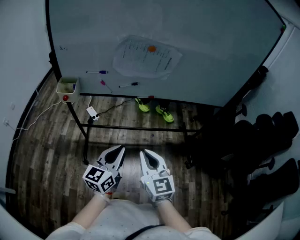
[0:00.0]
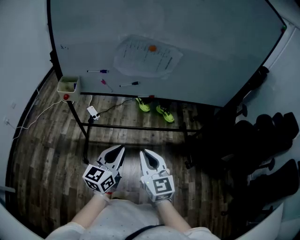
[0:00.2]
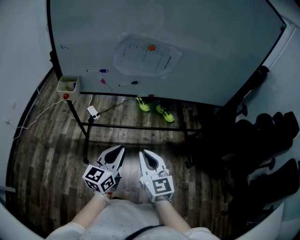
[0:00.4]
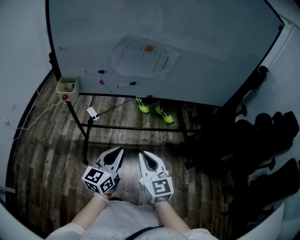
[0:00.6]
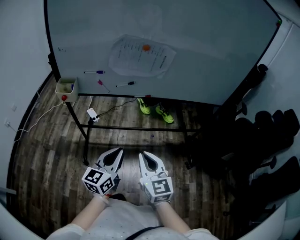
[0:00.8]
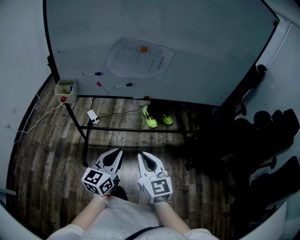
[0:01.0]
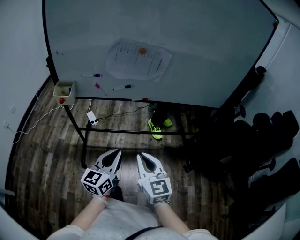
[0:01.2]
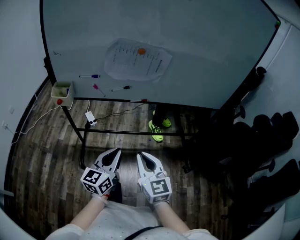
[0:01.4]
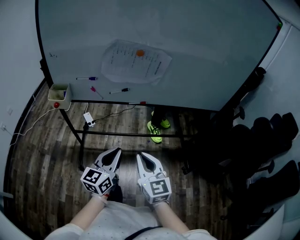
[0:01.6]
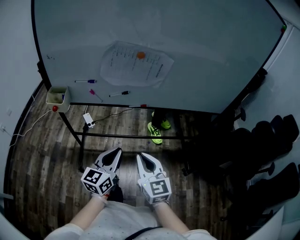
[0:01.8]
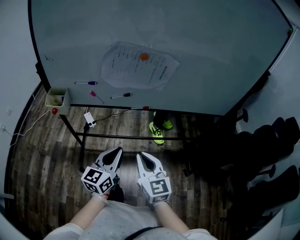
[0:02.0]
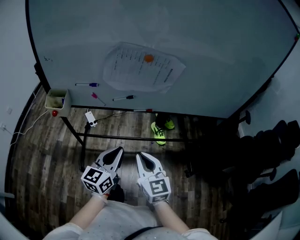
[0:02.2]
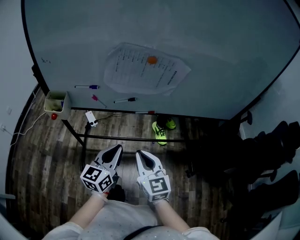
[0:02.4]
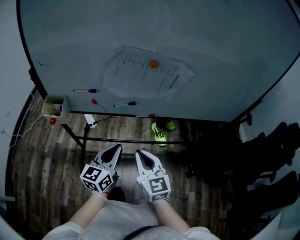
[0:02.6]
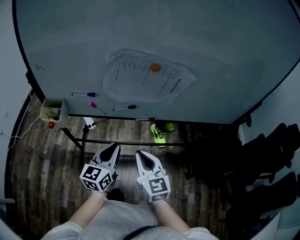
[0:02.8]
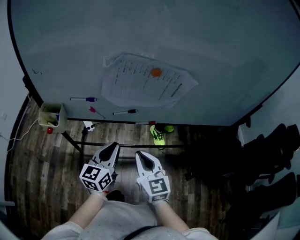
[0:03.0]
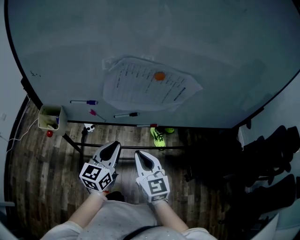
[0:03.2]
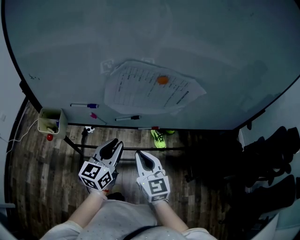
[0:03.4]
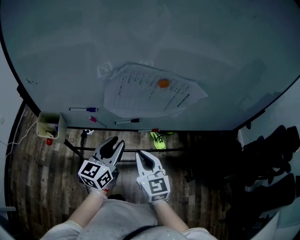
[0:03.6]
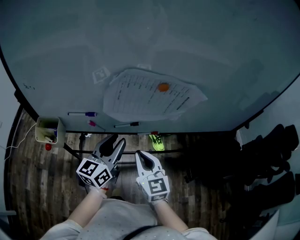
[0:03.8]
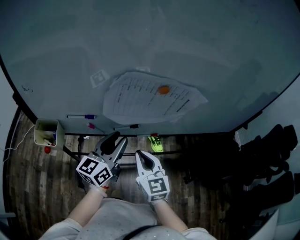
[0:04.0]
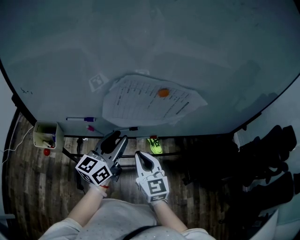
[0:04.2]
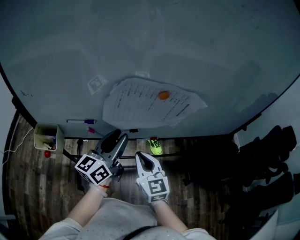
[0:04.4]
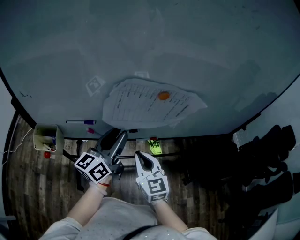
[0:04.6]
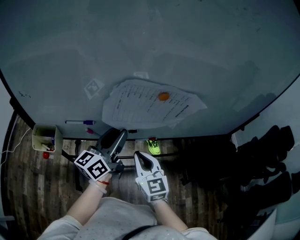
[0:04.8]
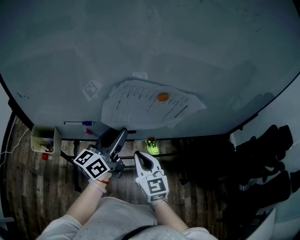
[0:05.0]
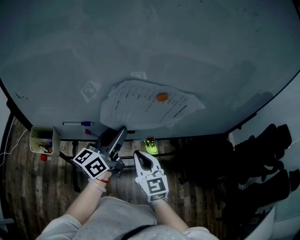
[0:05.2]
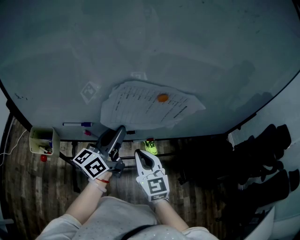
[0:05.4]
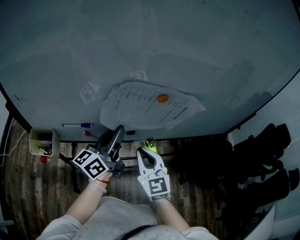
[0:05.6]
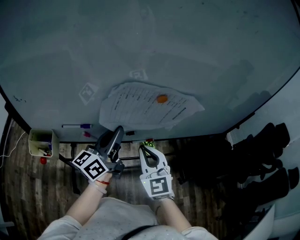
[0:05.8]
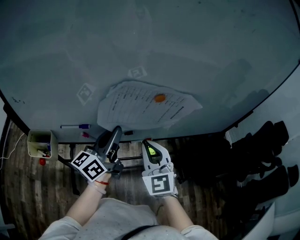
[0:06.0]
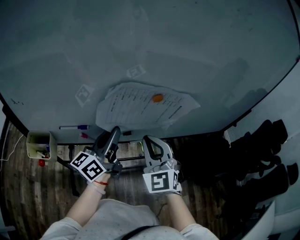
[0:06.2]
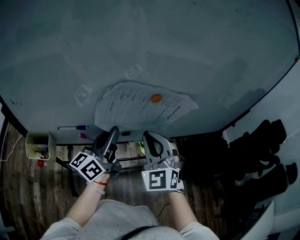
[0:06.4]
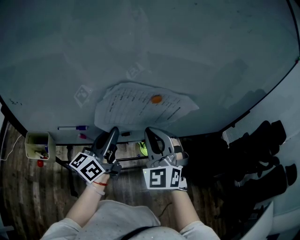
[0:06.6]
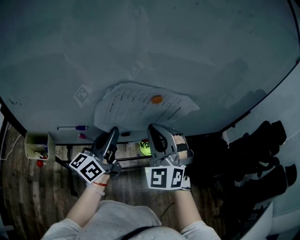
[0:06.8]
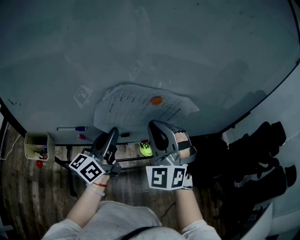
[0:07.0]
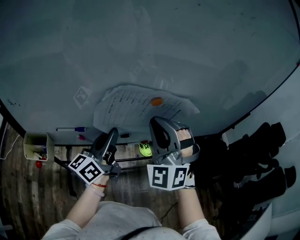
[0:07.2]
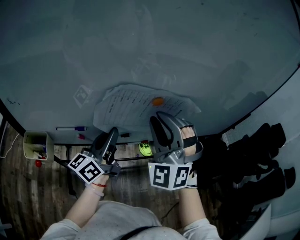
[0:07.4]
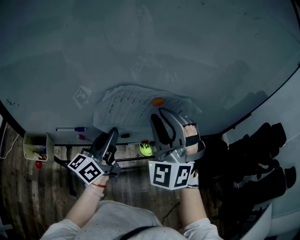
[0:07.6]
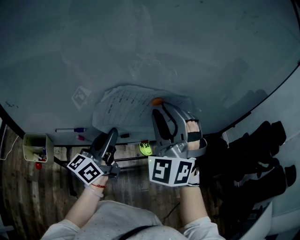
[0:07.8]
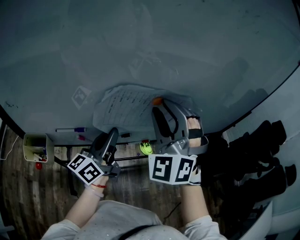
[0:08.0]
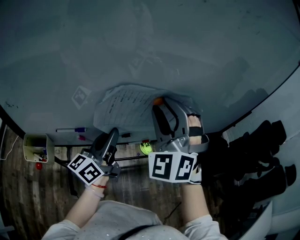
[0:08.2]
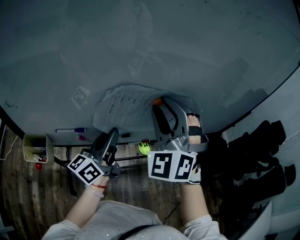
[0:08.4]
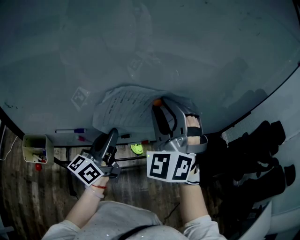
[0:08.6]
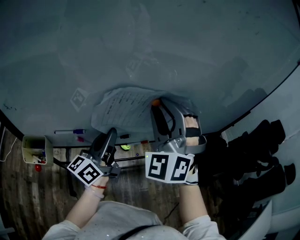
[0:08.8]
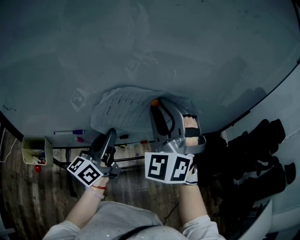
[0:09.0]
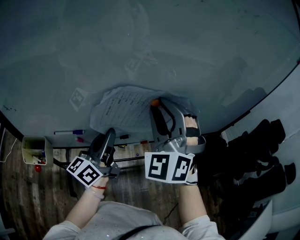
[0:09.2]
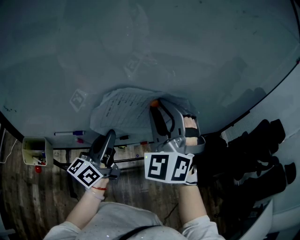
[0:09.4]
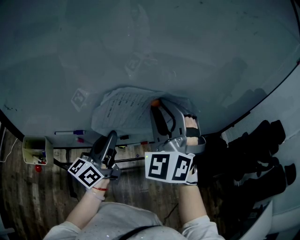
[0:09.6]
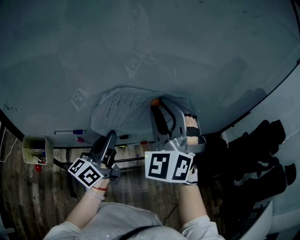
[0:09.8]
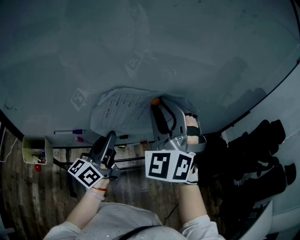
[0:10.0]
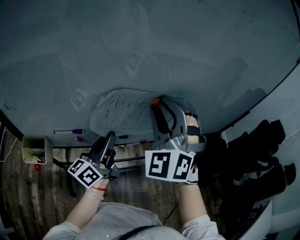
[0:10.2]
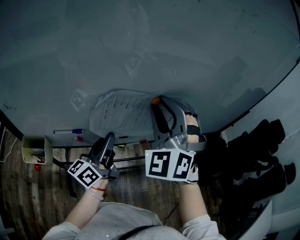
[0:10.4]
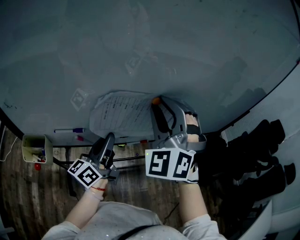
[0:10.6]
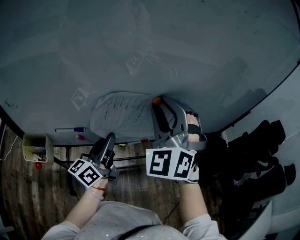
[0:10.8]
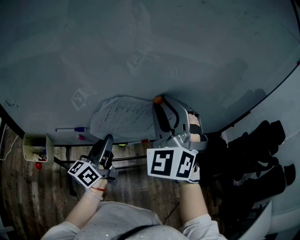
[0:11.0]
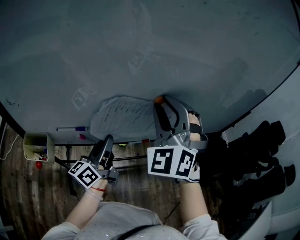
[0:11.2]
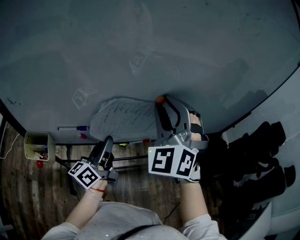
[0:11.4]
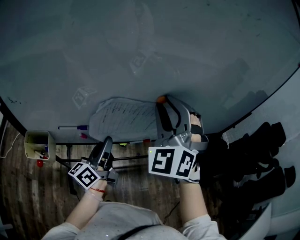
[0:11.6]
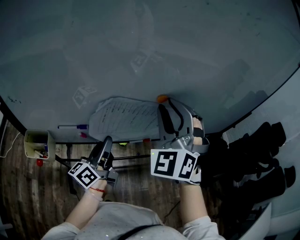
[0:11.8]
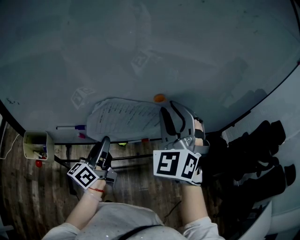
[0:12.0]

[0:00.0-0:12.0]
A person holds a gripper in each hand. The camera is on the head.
0:00.0 to 0:01.6: There are only small adjustments of the grippers.
0:01.6 to 0:03.0: The two grippers go about 20 cm forward.
0:03.0 to 0:04.4: The left gripper shifts some 15 cm forward and upward, swivels approximately 20 degrees, and opens its fingers. Meanwhile the right gripper goes approximately 10 cm forward.
0:04.4 to 0:06.0: The right gripper is displaced upward by some 10 cm, and swivels about 30 degrees. The left gripper closes its fingers.
0:06.0 to 0:07.6: The right gripper travels upward by roughly 15 cm, rolls counterclockwise, seen from behind, by about 40 degrees, and opens.
0:07.6 to 0:10.4: The grippers stay close to where they were, moving slightly.
0:10.4 to 0:12.0: The left gripper ends up some 5 cm from where it was.

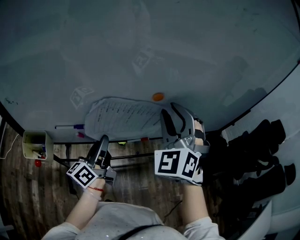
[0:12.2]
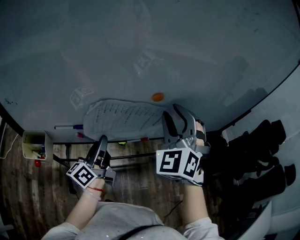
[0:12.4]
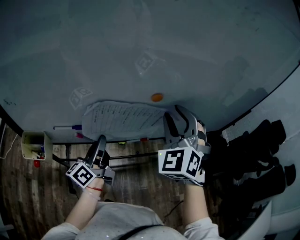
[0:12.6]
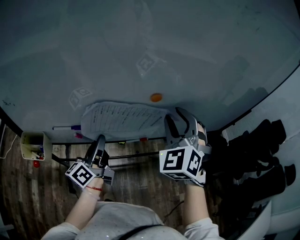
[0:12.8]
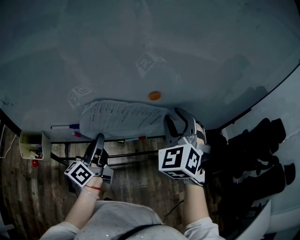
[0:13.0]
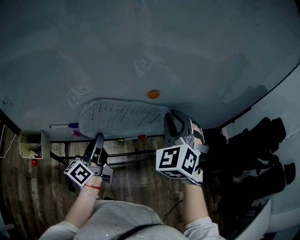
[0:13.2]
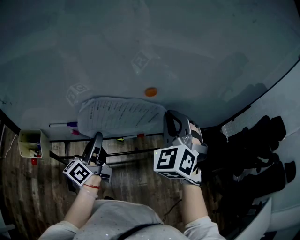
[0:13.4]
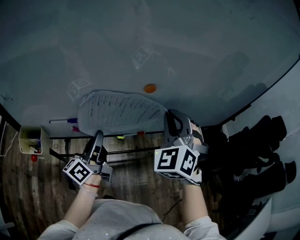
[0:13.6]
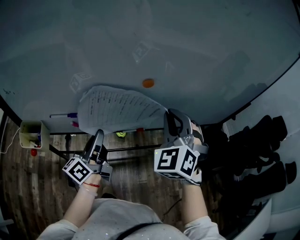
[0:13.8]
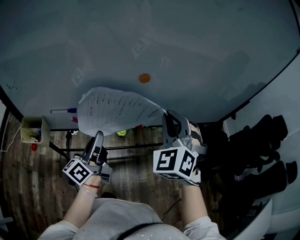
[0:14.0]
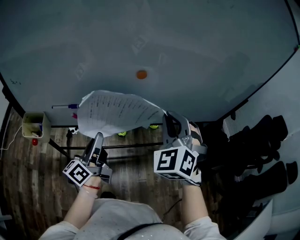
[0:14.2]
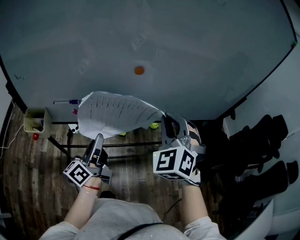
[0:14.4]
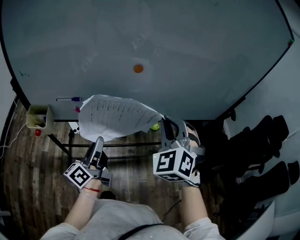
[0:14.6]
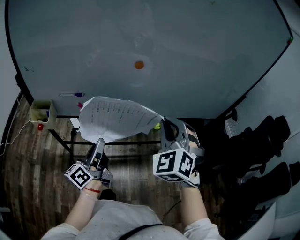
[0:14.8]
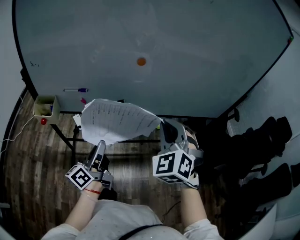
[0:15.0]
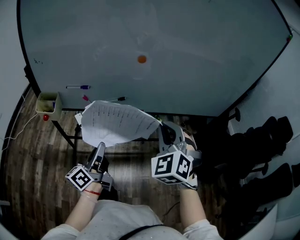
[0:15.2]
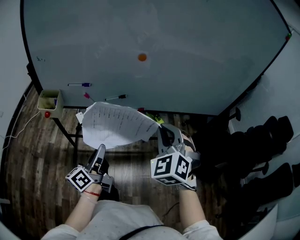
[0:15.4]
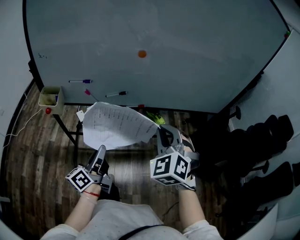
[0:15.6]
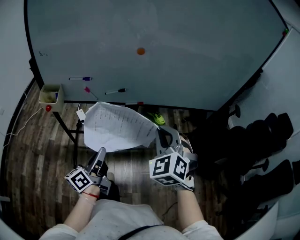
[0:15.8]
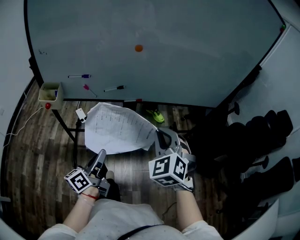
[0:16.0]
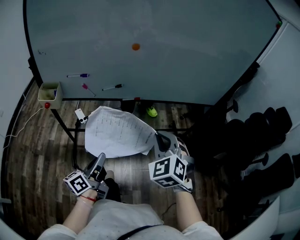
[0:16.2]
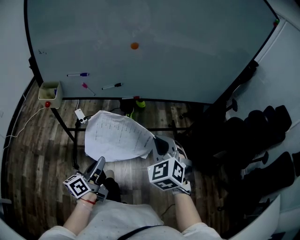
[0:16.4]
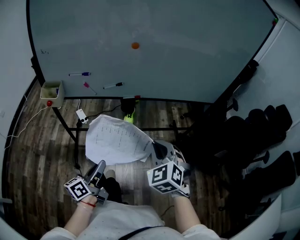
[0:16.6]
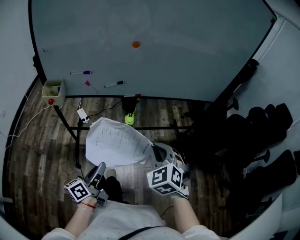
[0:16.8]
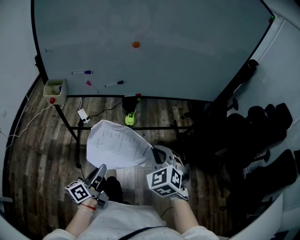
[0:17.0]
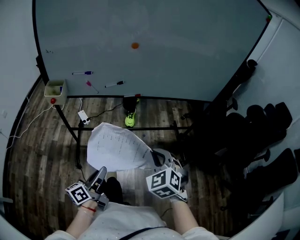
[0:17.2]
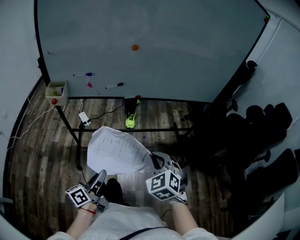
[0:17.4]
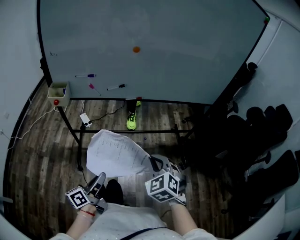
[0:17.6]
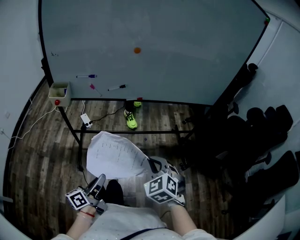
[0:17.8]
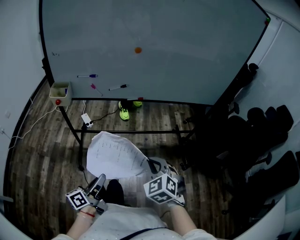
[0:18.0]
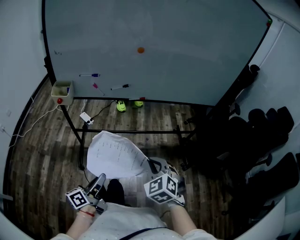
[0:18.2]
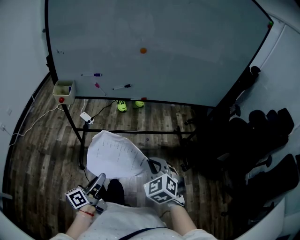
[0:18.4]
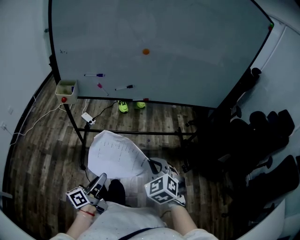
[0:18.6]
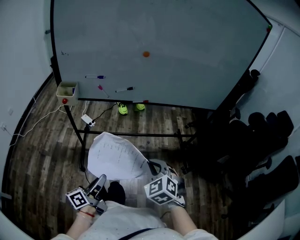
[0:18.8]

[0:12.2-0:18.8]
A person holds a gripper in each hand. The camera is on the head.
0:12.2 to 0:13.8: The right gripper travels to the right by about 5 cm, and closes up.
0:13.8 to 0:15.4: Both grippers move backward, approximately 20 cm.
0:15.4 to 0:17.2: The left gripper heads backward, covering roughly 20 cm. Meanwhile the right gripper travels backward and downward by approximately 20 cm.
0:17.2 to 0:18.8: Both grippers move backward, some 5 cm.

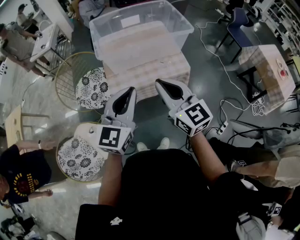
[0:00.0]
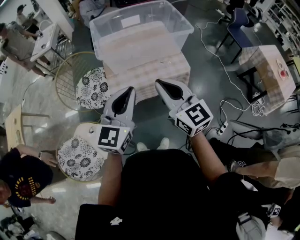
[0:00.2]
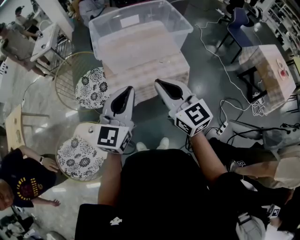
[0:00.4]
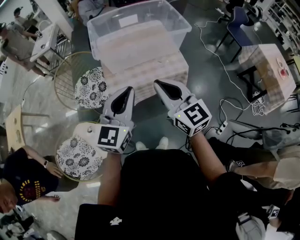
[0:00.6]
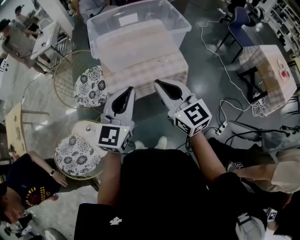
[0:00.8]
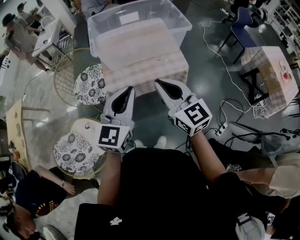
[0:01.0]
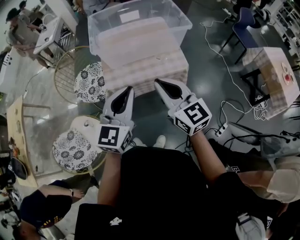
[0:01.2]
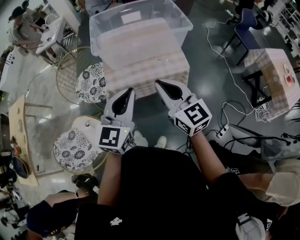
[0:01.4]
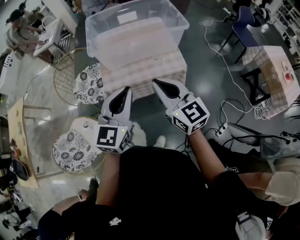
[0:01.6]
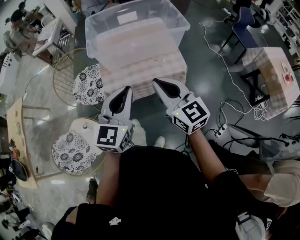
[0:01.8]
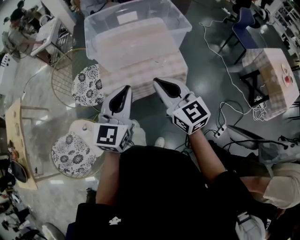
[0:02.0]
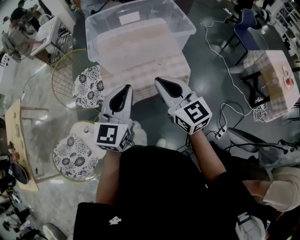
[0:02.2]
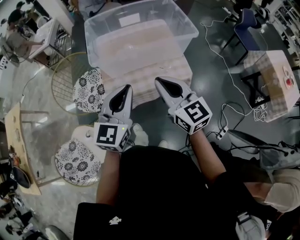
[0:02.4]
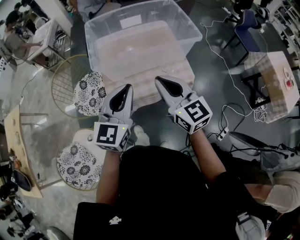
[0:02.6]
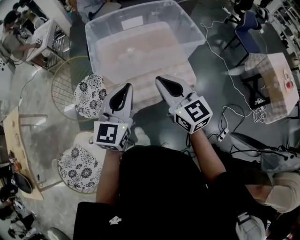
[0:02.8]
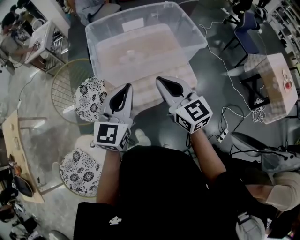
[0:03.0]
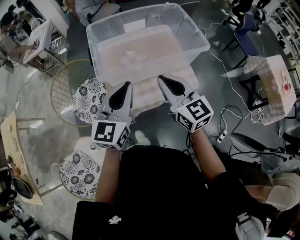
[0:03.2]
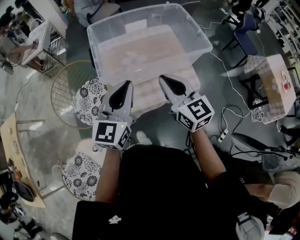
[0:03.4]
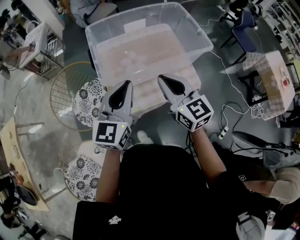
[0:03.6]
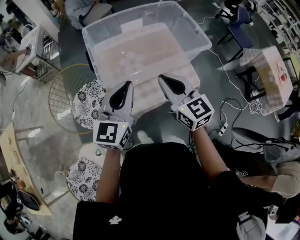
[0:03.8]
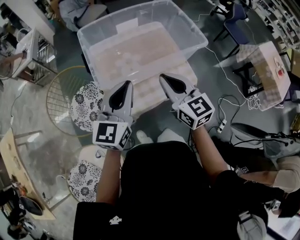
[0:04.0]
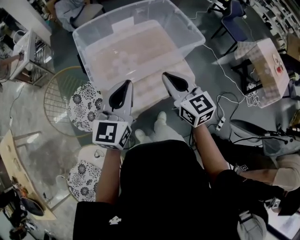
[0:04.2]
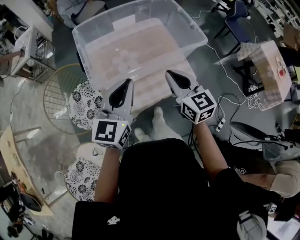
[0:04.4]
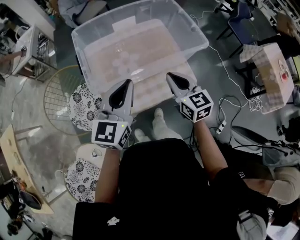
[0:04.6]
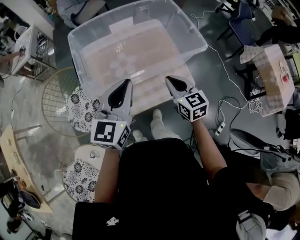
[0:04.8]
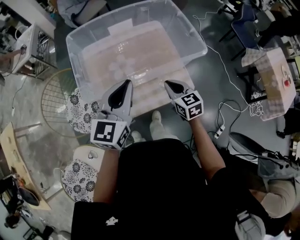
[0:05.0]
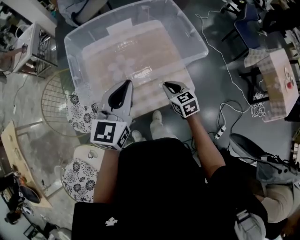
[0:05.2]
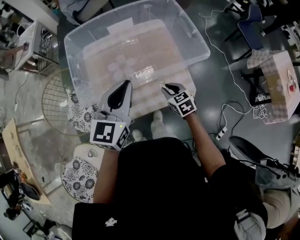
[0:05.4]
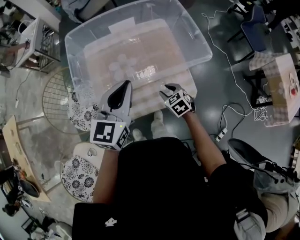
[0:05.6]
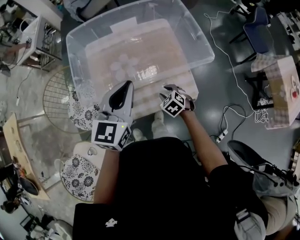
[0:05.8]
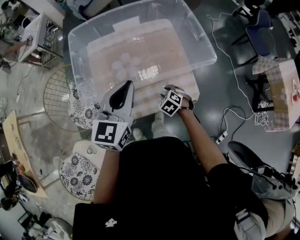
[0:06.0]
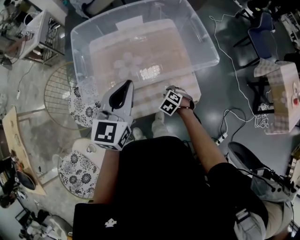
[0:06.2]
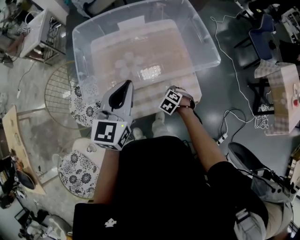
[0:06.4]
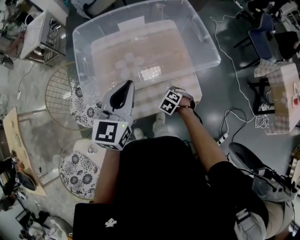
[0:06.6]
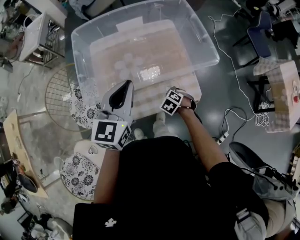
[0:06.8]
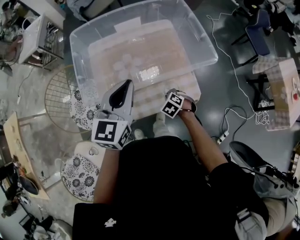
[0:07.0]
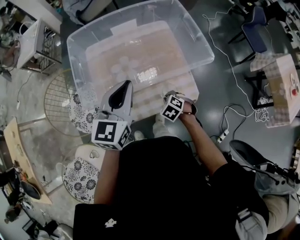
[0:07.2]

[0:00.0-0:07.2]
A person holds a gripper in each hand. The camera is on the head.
0:00.0 to 0:01.4: Both grippers travel together to the right, some 5 cm.
0:01.4 to 0:02.8: The two grippers go roughly 15 cm forward.
0:02.8 to 0:04.4: The right gripper shifts roughly 10 cm forward and downward. Meanwhile the left gripper shifts roughly 10 cm forward.
0:04.4 to 0:05.8: The right gripper travels downward by some 30 cm, points its fingers about 50 degrees further downward, and opens; the left gripper is displaced forward and to the right by some 10 cm.
0:05.8 to 0:07.2: The right gripper closes up.
